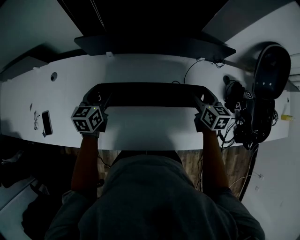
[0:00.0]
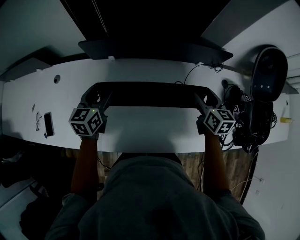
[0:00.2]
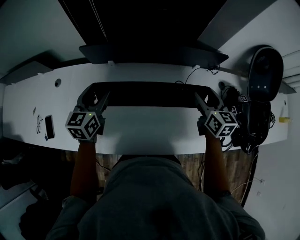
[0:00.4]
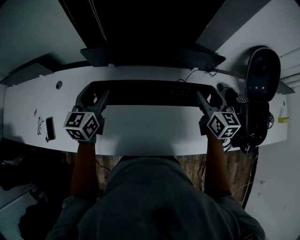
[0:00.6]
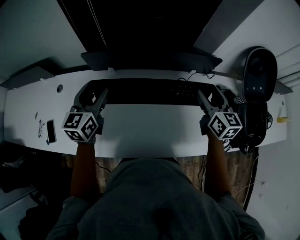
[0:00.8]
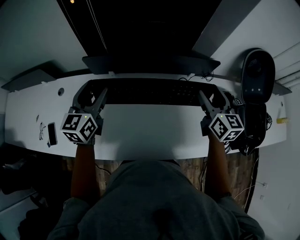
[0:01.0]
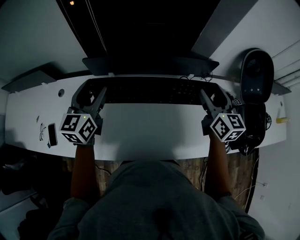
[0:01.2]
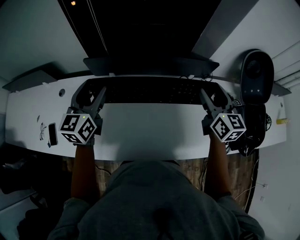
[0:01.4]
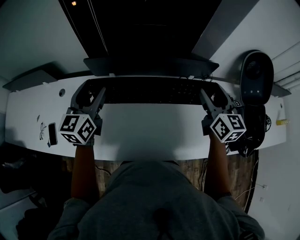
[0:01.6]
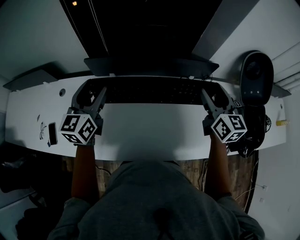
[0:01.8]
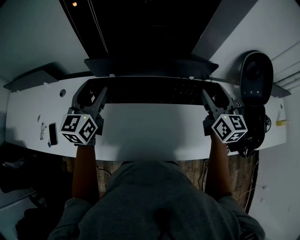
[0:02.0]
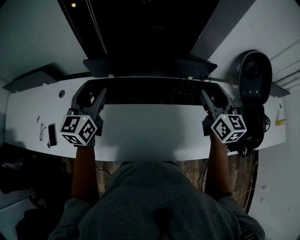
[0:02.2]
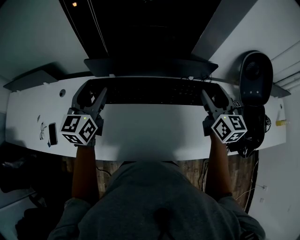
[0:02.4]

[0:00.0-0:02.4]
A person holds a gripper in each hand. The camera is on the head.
0:00.0 to 0:01.2: The two grippers go some 20 cm upward. The right gripper swivels about 20 degrees, while the left gripper turns by some 20 degrees.
0:01.2 to 0:02.4: The grippers make only small movements.

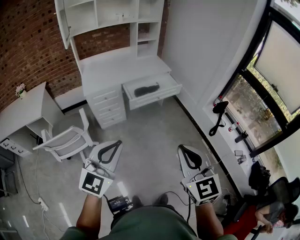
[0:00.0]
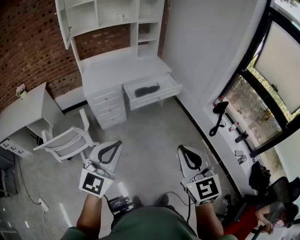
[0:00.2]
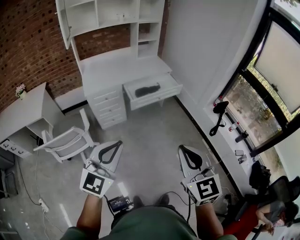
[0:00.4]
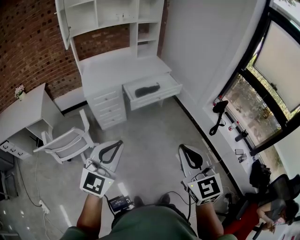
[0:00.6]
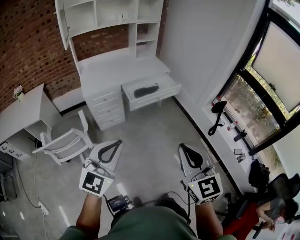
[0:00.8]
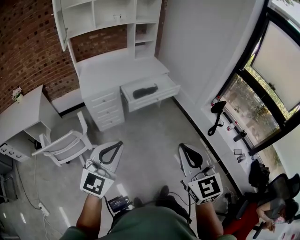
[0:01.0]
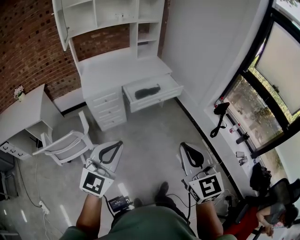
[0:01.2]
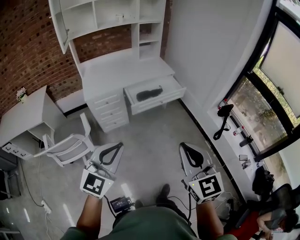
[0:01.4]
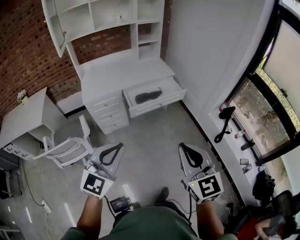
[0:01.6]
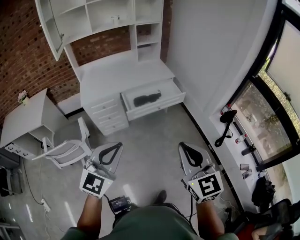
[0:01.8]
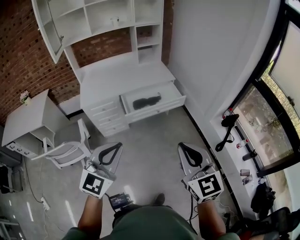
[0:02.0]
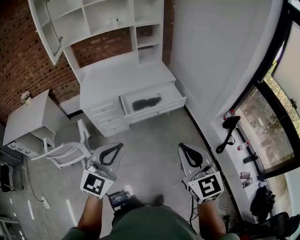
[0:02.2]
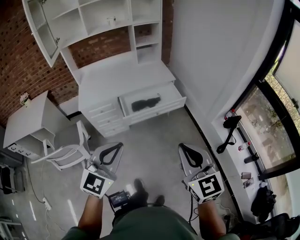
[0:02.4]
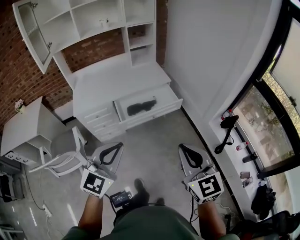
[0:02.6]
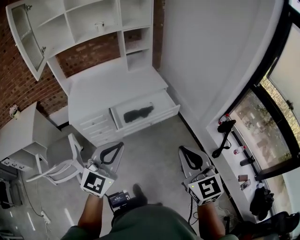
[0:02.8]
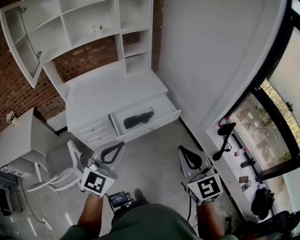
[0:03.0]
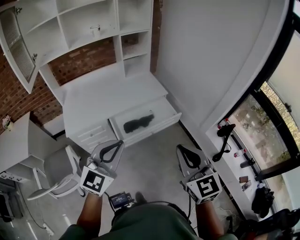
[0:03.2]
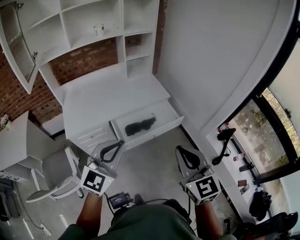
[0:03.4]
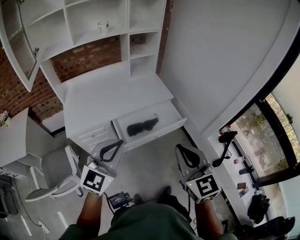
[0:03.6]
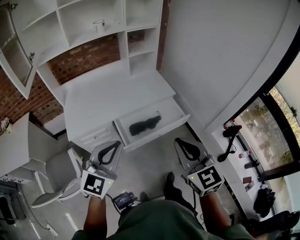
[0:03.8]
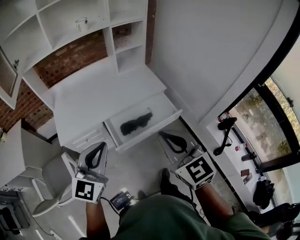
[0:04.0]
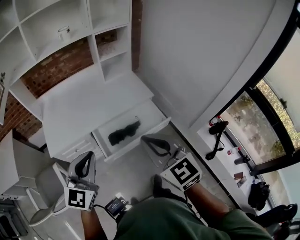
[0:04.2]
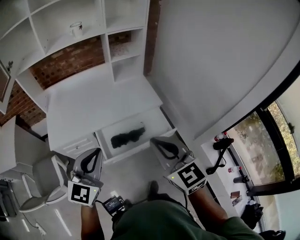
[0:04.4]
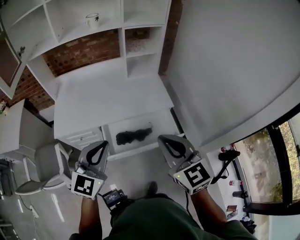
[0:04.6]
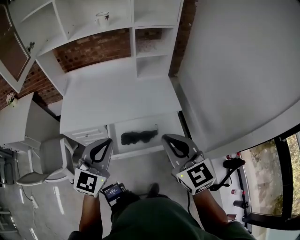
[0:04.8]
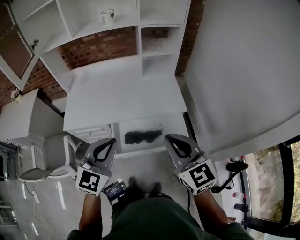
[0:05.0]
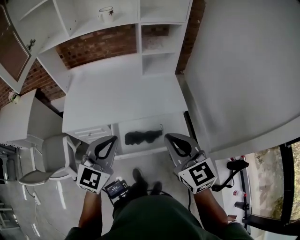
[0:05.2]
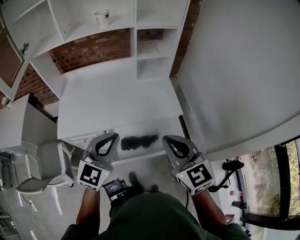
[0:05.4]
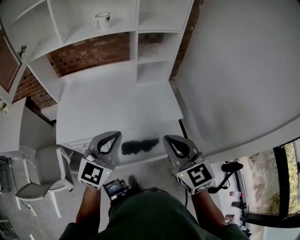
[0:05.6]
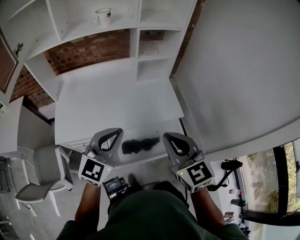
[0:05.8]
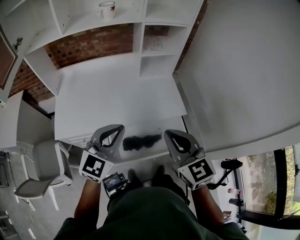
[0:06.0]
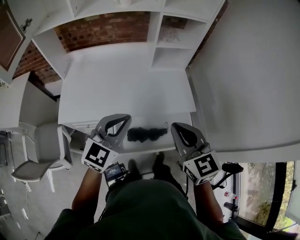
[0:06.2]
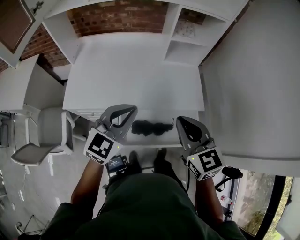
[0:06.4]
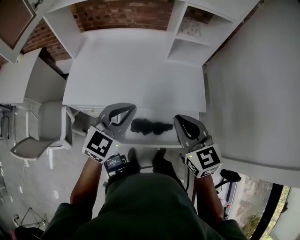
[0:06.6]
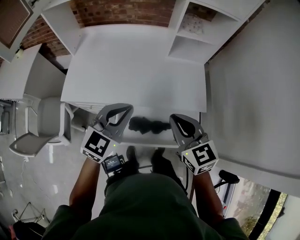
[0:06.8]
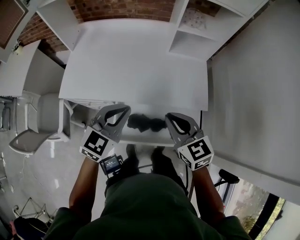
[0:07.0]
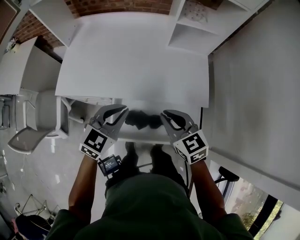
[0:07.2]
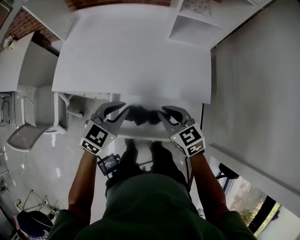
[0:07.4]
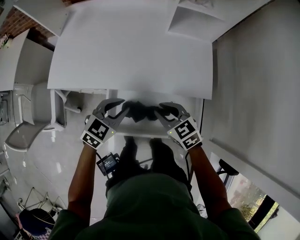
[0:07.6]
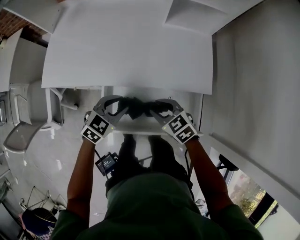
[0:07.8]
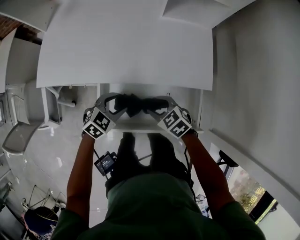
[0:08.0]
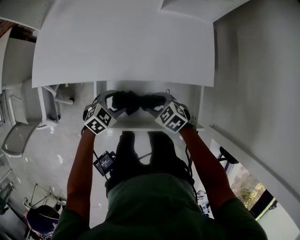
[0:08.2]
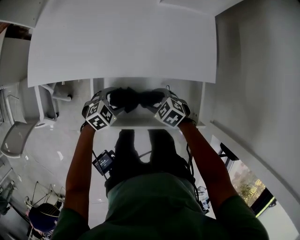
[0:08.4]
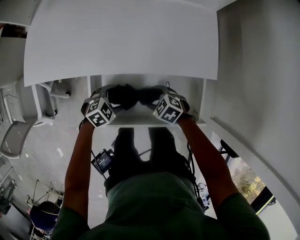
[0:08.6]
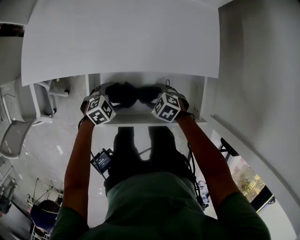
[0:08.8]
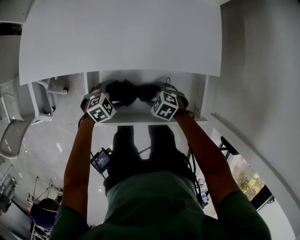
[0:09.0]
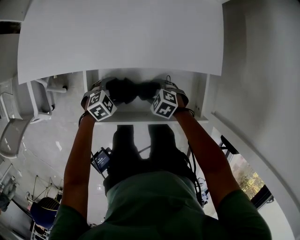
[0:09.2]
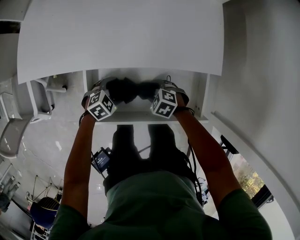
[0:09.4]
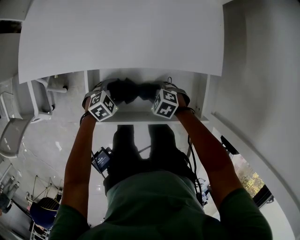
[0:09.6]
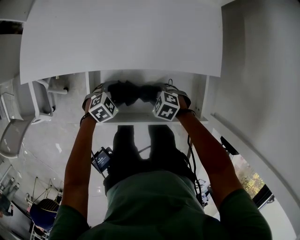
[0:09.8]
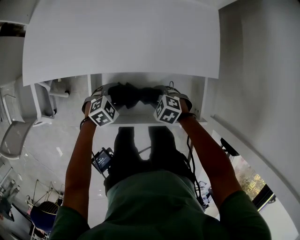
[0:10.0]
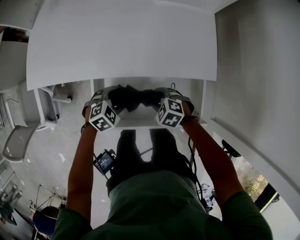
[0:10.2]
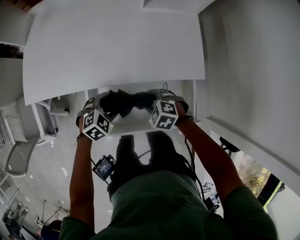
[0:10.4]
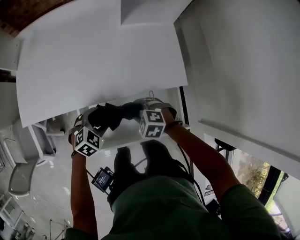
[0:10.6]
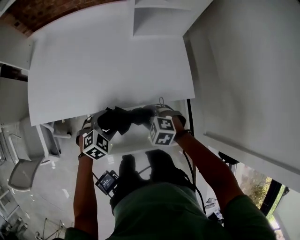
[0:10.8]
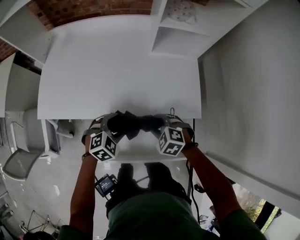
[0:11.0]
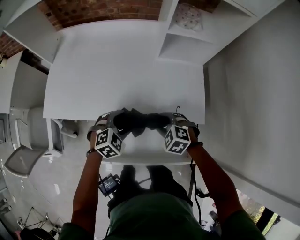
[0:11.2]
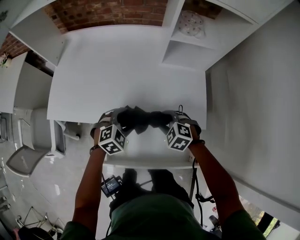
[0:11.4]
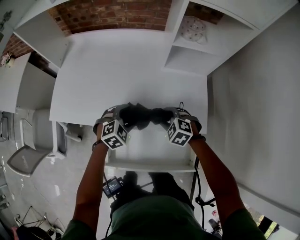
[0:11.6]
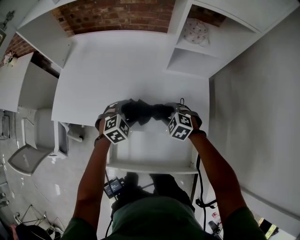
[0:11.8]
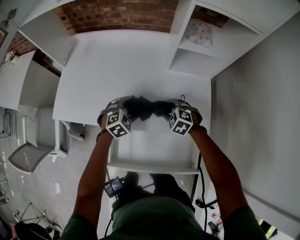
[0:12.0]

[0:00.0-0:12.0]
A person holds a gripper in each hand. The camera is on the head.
0:00.0 to 0:01.6: The two grippers go some 10 cm forward.
0:01.6 to 0:03.0: Both grippers travel together forward, roughly 30 cm.
0:03.0 to 0:04.4: Both grippers travel together forward, about 25 cm.
0:04.4 to 0:06.0: The grippers both shift forward by approximately 20 cm.
0:06.0 to 0:07.6: The right gripper shifts about 35 cm downward and forward, and changes its angle by roughly 40 degrees, while the left gripper is displaced downward by about 25 cm, and swivels about 30 degrees.
0:07.6 to 0:09.0: Both grippers travel together downward, about 30 cm. The right gripper rotates some 40 degrees, and opens its fingers. Meanwhile the left gripper rotates approximately 30 degrees, and opens up.
0:09.0 to 0:10.4: The grippers both shift upward by some 10 cm. The right gripper closes its fingers.
0:10.4 to 0:12.0: The left gripper changes place by about 20 cm; the right gripper ends up about 25 cm from where it was.

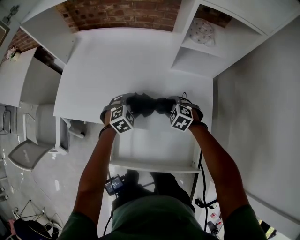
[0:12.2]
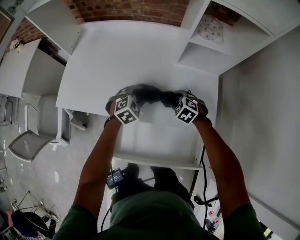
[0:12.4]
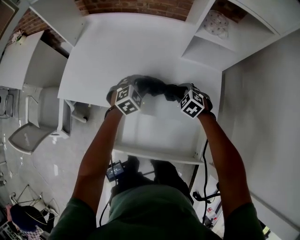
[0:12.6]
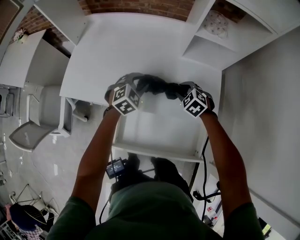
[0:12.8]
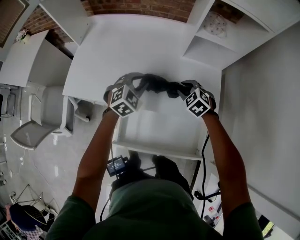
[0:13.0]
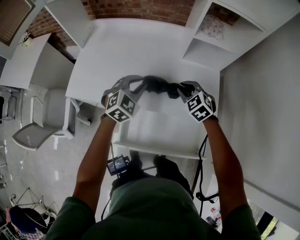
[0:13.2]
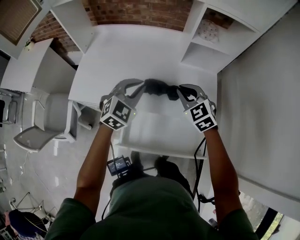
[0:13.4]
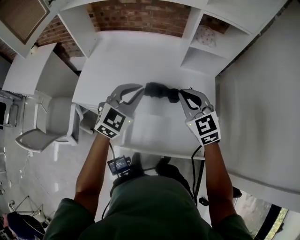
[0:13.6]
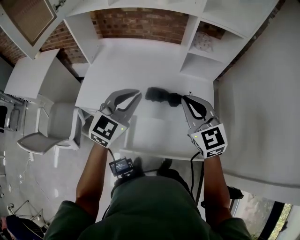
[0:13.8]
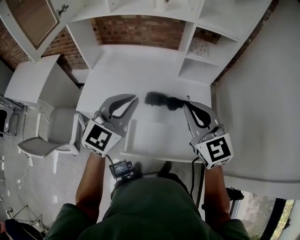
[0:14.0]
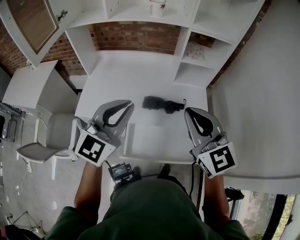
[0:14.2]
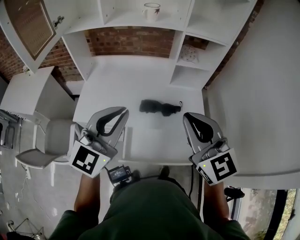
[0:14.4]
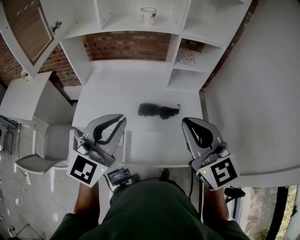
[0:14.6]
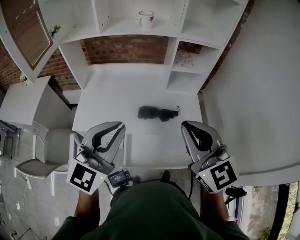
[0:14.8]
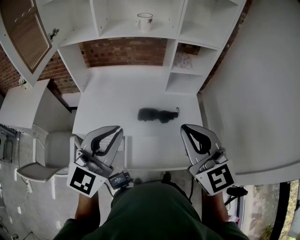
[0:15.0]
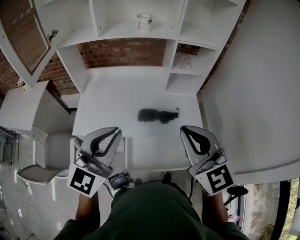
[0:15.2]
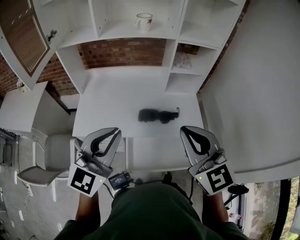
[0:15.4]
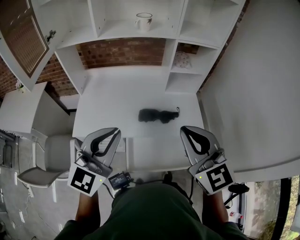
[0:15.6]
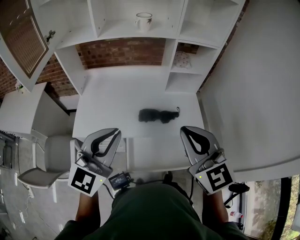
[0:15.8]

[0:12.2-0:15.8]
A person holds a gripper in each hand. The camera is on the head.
0:12.2 to 0:14.0: The grippers both shift upward and backward by approximately 50 cm. The left gripper tips its fingers upward by roughly 50 degrees, and closes its fingers, while the right gripper points its fingers roughly 50 degrees further upward, and closes its fingers.
0:14.0 to 0:15.8: The left gripper moves backward, to the left and upward, roughly 10 cm, while the right gripper travels backward and upward by about 10 cm.

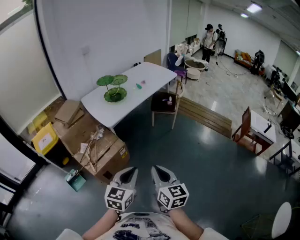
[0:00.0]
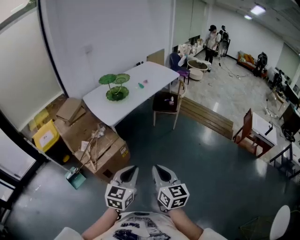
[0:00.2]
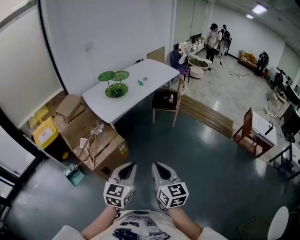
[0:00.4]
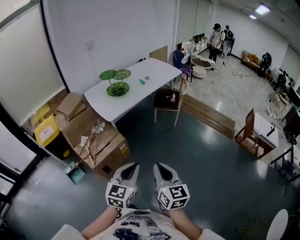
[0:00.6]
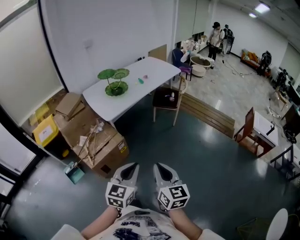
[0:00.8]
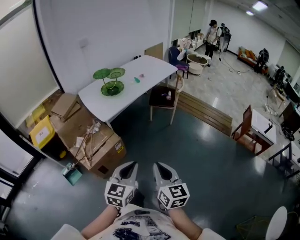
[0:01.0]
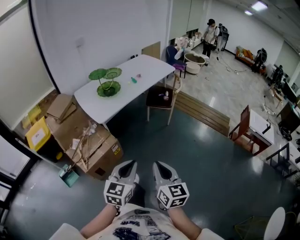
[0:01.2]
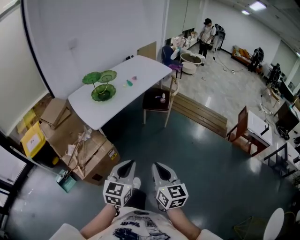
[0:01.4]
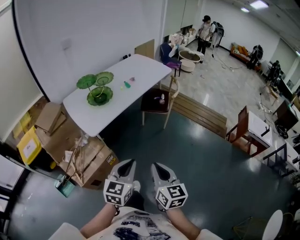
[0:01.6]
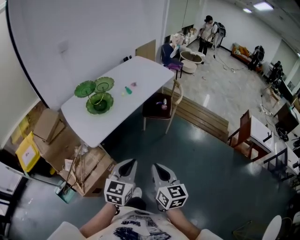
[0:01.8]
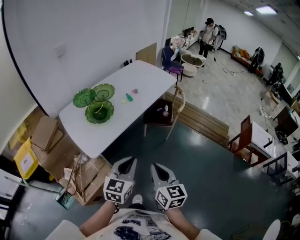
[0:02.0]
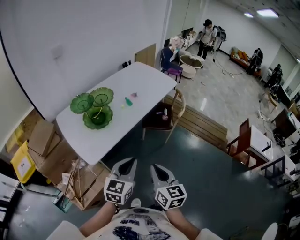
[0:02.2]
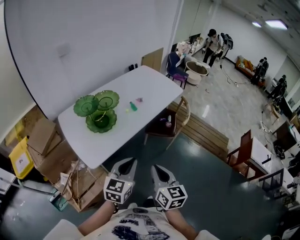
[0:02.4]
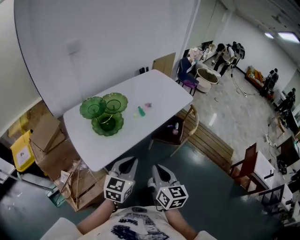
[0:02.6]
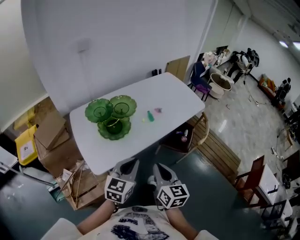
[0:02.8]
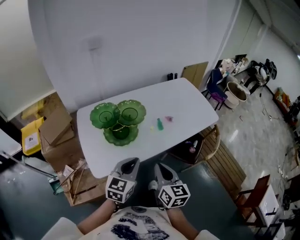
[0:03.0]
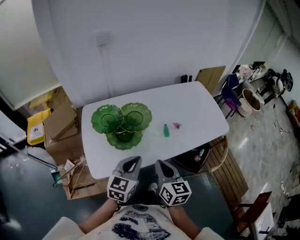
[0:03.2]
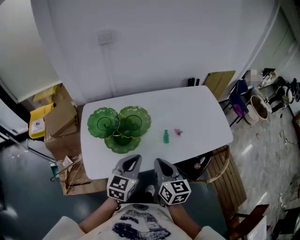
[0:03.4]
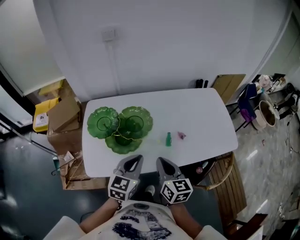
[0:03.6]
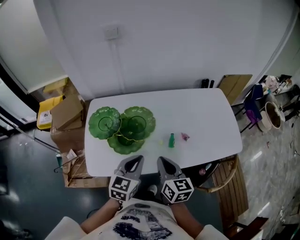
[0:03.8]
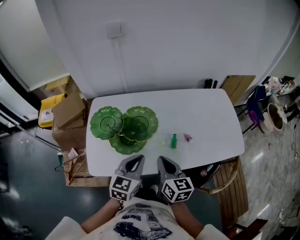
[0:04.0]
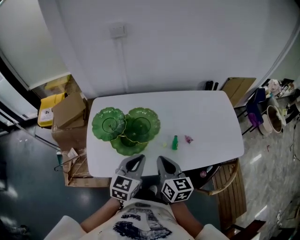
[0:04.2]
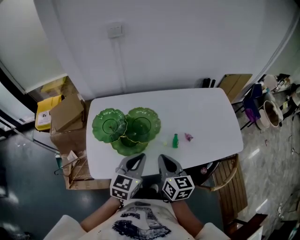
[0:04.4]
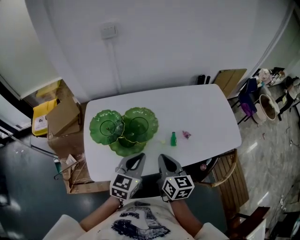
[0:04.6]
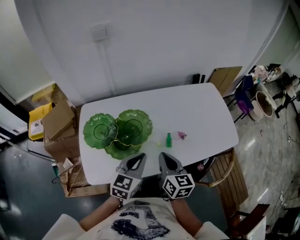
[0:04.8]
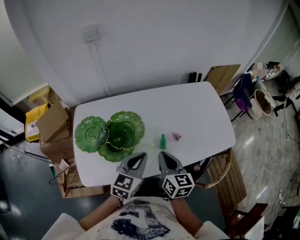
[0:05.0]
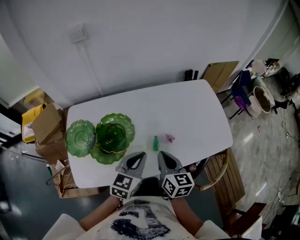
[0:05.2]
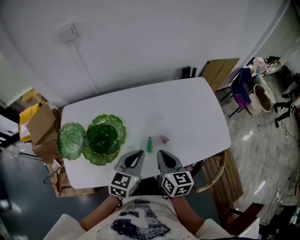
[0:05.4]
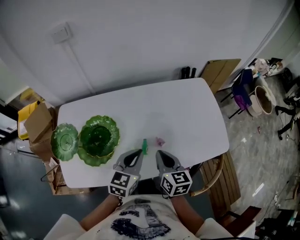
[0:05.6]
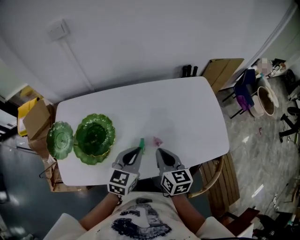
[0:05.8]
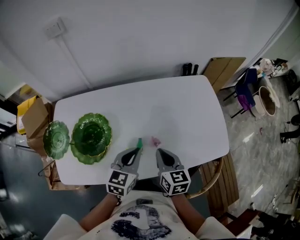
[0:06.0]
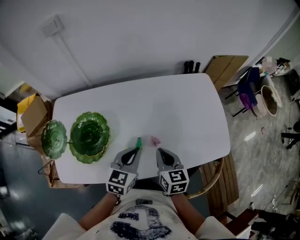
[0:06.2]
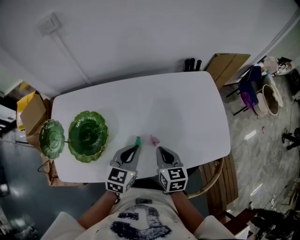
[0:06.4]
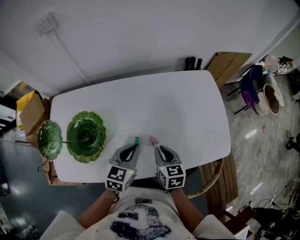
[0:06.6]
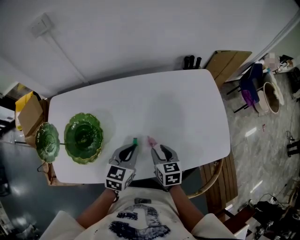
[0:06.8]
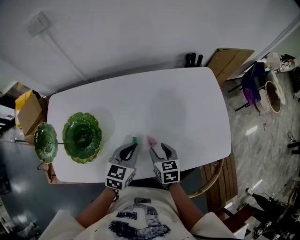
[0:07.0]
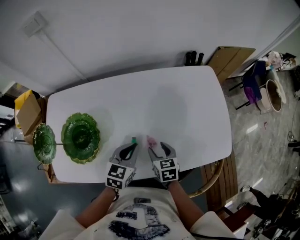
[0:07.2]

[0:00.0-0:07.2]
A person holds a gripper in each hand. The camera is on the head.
0:00.0 to 0:01.4: The two grippers go approximately 10 cm forward and to the right.
0:01.4 to 0:02.8: The pair of grippers is taken forward, about 50 cm.
0:02.8 to 0:04.4: The right gripper moves about 30 cm, and swivels roughly 30 degrees. Meanwhile the left gripper changes place by some 25 cm, and rotates approximately 30 degrees.
0:04.4 to 0:05.8: The two grippers go roughly 20 cm to the right and forward.
0:05.8 to 0:07.2: The left gripper is displaced downward by roughly 10 cm. The right gripper heads downward, covering some 15 cm, turns by some 20 degrees, and opens.
